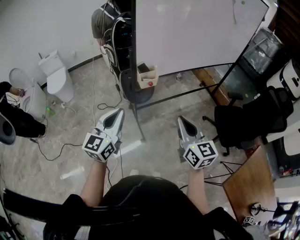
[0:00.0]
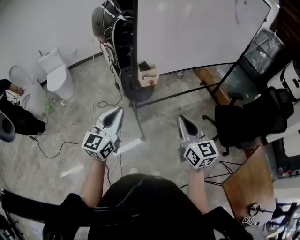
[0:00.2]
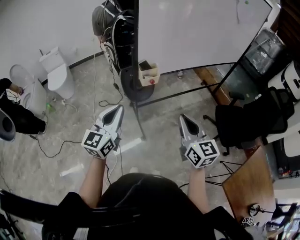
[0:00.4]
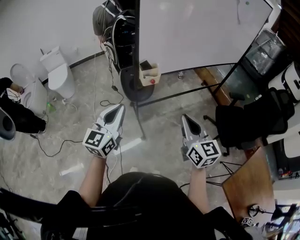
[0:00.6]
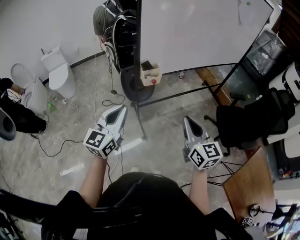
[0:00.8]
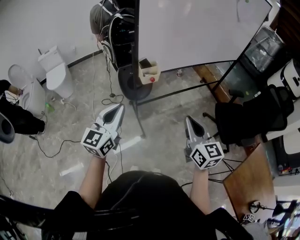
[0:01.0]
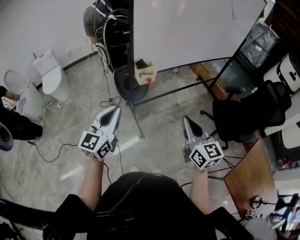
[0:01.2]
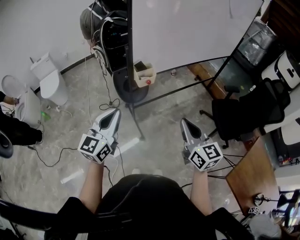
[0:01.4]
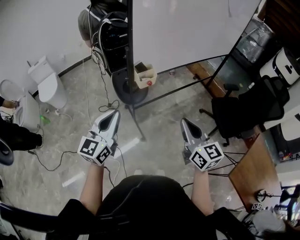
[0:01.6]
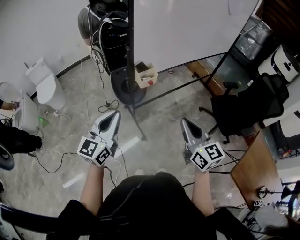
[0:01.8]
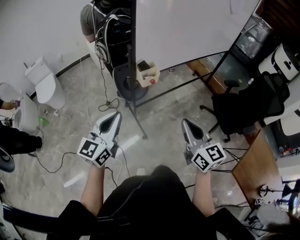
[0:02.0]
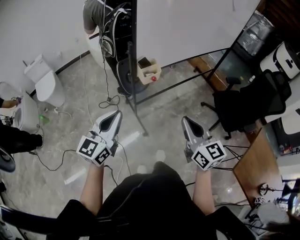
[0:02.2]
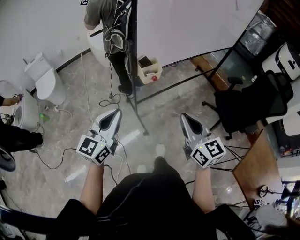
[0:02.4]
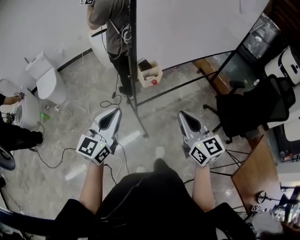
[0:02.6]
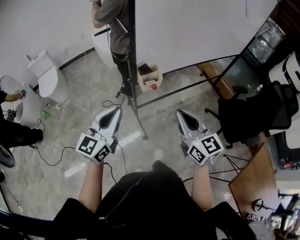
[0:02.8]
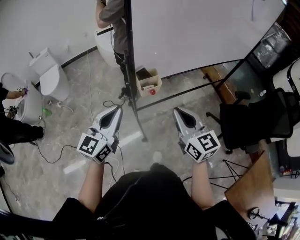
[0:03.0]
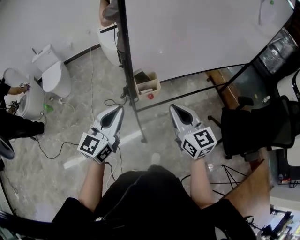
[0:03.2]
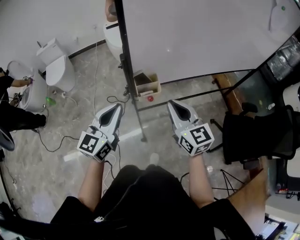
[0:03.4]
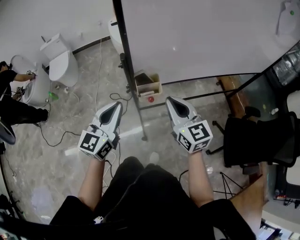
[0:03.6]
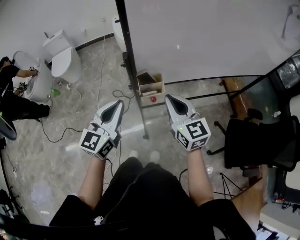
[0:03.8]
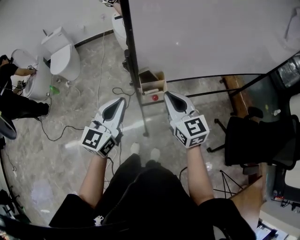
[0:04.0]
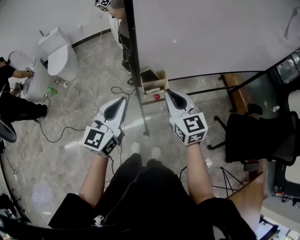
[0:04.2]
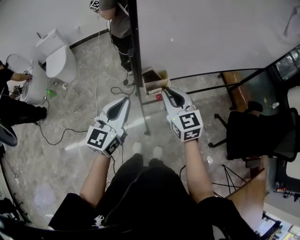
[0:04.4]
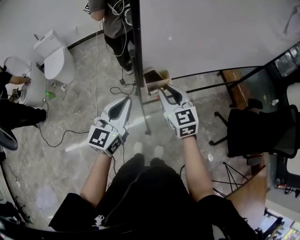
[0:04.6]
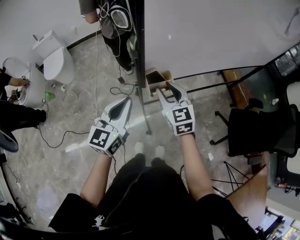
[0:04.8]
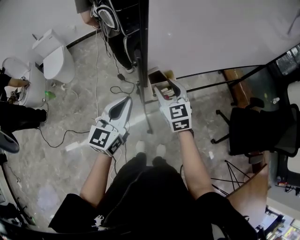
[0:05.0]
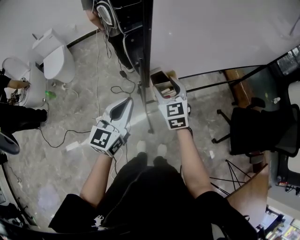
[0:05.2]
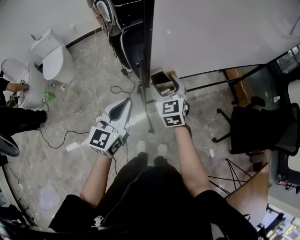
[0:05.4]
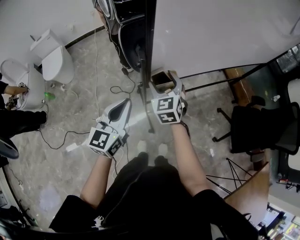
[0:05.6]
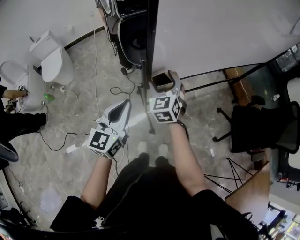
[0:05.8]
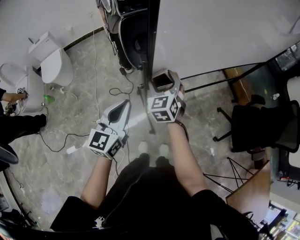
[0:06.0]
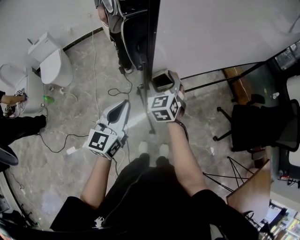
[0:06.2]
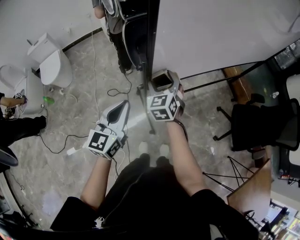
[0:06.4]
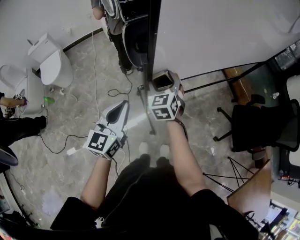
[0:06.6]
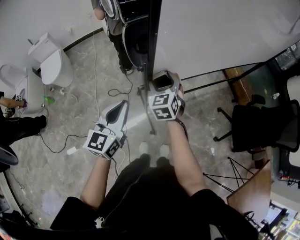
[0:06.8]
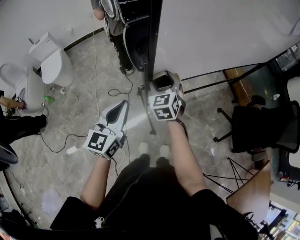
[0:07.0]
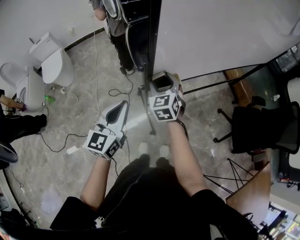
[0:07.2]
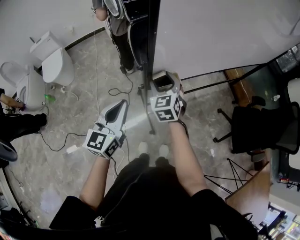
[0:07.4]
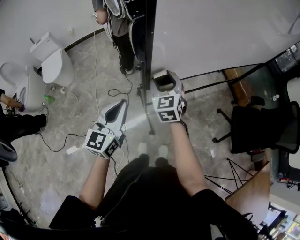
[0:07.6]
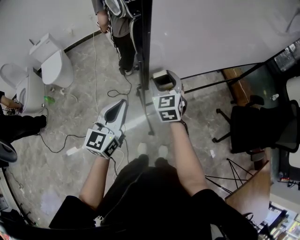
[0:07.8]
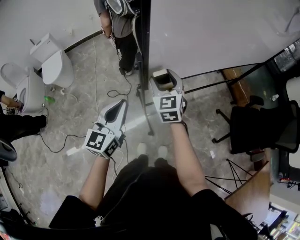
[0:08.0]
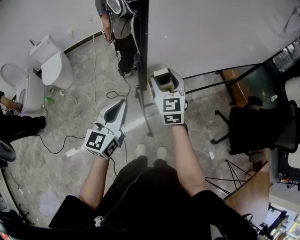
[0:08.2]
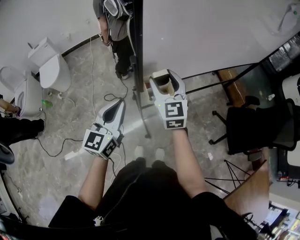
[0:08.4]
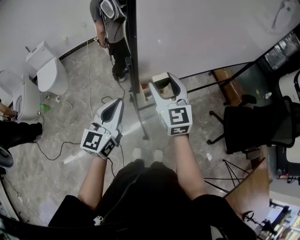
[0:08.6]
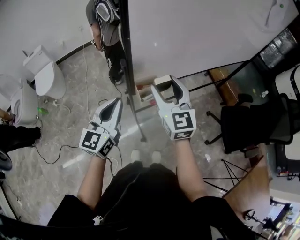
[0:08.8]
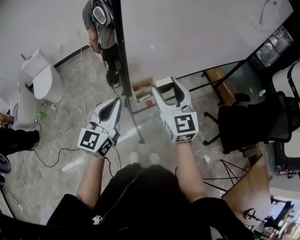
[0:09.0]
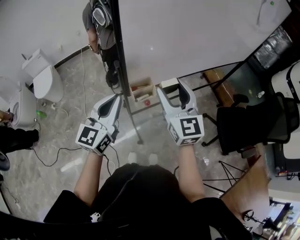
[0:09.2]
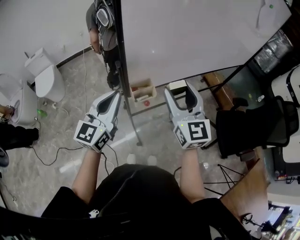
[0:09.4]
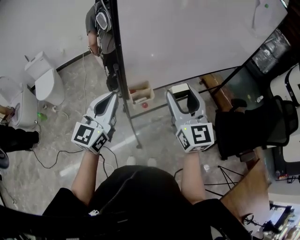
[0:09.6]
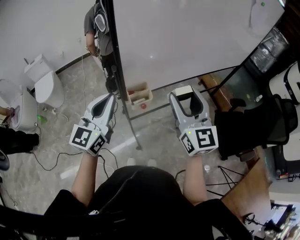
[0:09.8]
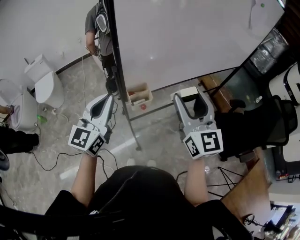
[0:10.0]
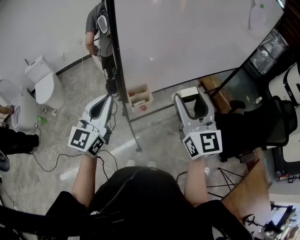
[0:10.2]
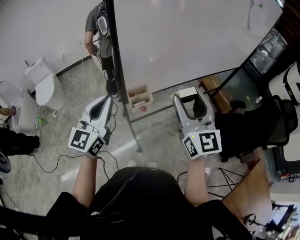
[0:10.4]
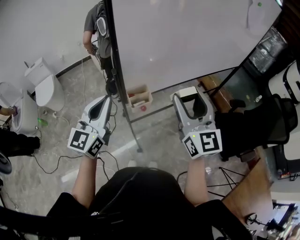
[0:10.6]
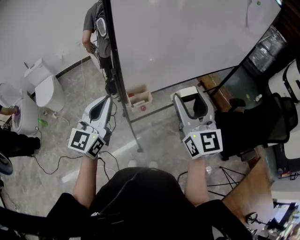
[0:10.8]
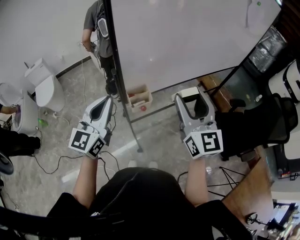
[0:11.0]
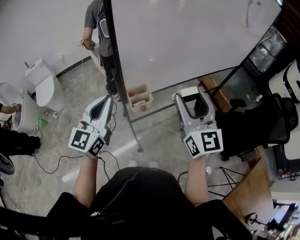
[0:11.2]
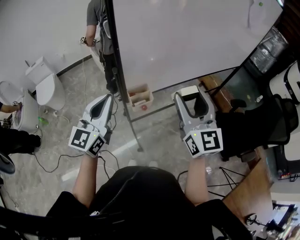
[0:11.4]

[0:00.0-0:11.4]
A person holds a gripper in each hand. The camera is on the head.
0:00.0 to 0:01.4: The grippers move only a little.
0:01.4 to 0:02.8: The right gripper heads forward and to the left, covering some 10 cm; the left gripper heads forward, covering roughly 10 cm.
0:02.8 to 0:04.2: The left gripper goes some 10 cm forward. The right gripper goes about 20 cm forward.
0:04.2 to 0:05.6: The left gripper changes place by approximately 5 cm. The right gripper moves forward, to the left and downward, approximately 15 cm, rotates roughly 30 degrees, and opens up.
0:05.6 to 0:07.2: There are only small adjustments of the grippers.
0:07.2 to 0:08.6: The right gripper shifts approximately 15 cm upward, backward and to the right, and changes its angle by some 20 degrees, while the left gripper ends up roughly 5 cm from where it was.
0:08.6 to 0:10.0: The right gripper is displaced to the right, upward and backward by some 20 cm. The left gripper travels upward by roughly 10 cm.
0:10.0 to 0:11.4: Both grippers stay put.

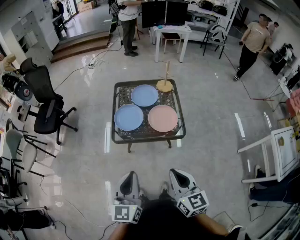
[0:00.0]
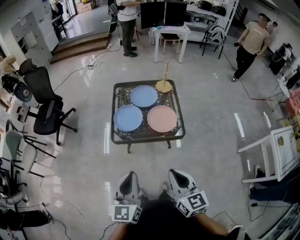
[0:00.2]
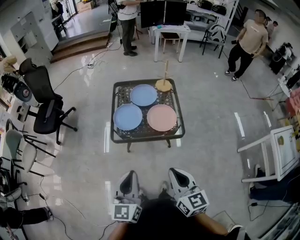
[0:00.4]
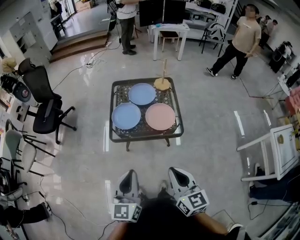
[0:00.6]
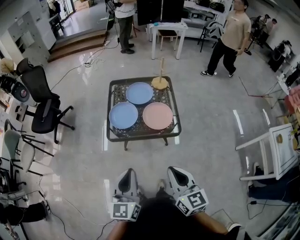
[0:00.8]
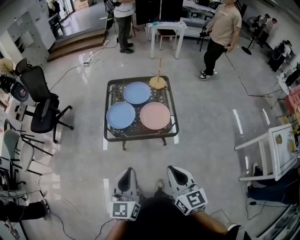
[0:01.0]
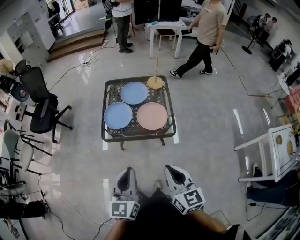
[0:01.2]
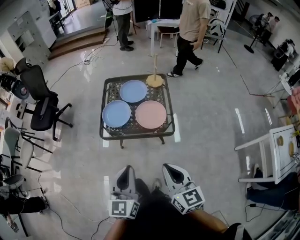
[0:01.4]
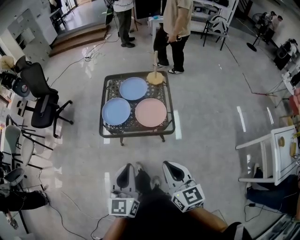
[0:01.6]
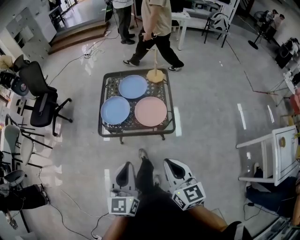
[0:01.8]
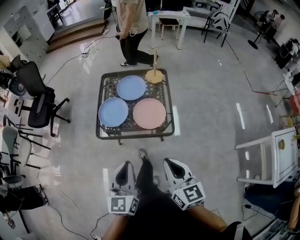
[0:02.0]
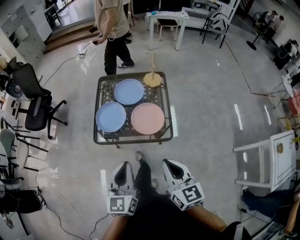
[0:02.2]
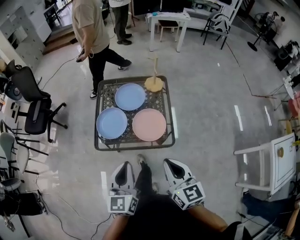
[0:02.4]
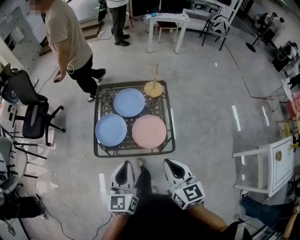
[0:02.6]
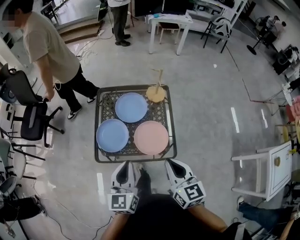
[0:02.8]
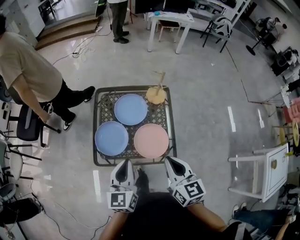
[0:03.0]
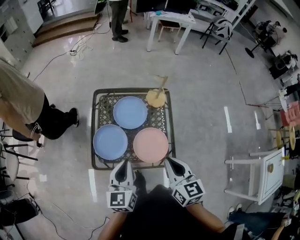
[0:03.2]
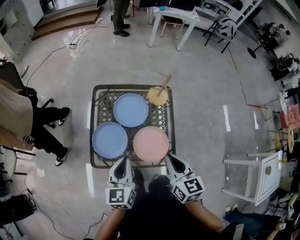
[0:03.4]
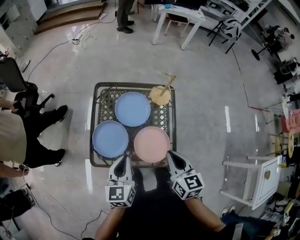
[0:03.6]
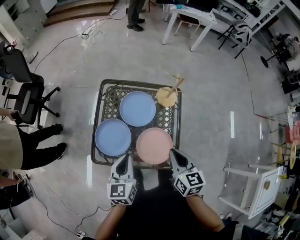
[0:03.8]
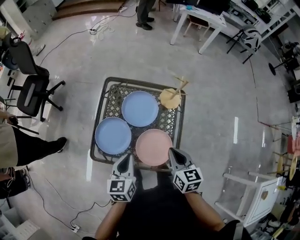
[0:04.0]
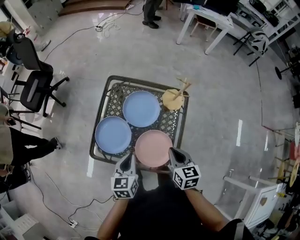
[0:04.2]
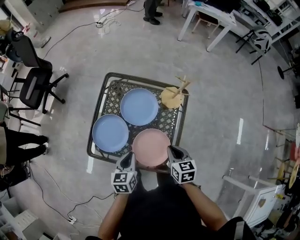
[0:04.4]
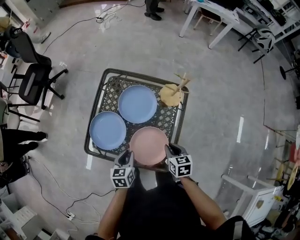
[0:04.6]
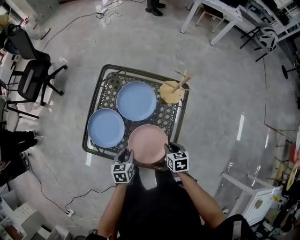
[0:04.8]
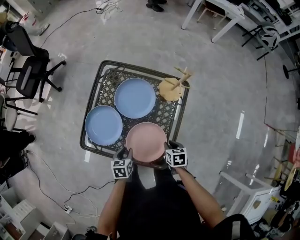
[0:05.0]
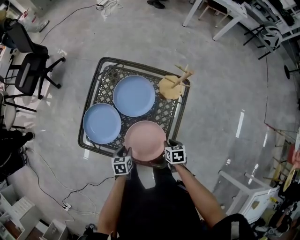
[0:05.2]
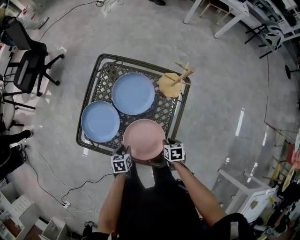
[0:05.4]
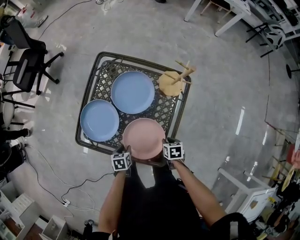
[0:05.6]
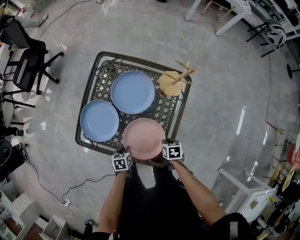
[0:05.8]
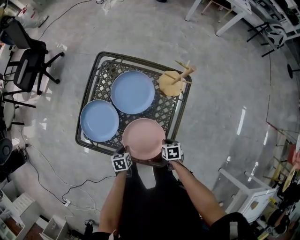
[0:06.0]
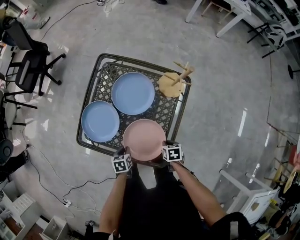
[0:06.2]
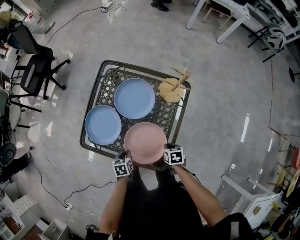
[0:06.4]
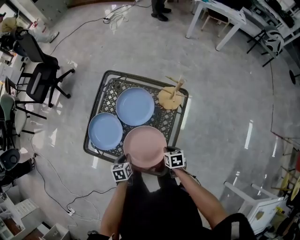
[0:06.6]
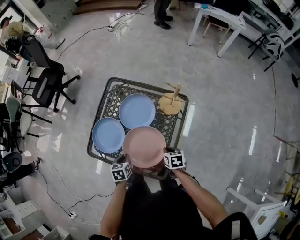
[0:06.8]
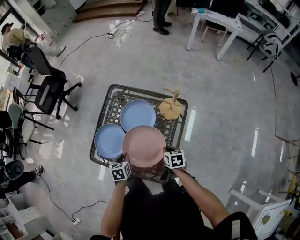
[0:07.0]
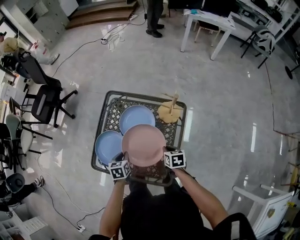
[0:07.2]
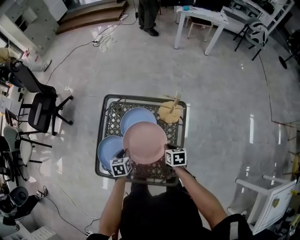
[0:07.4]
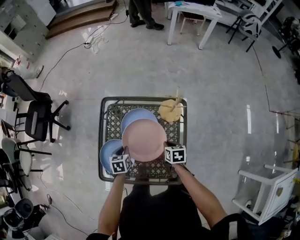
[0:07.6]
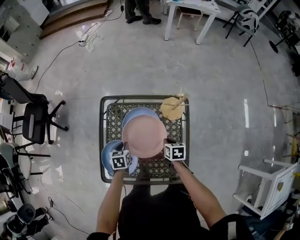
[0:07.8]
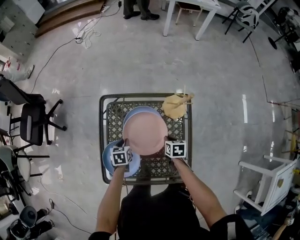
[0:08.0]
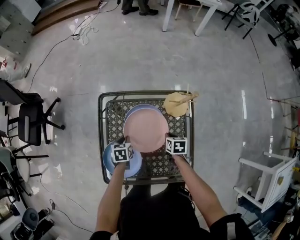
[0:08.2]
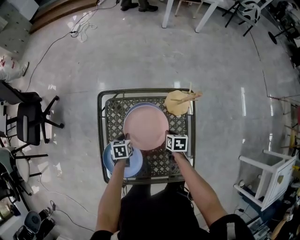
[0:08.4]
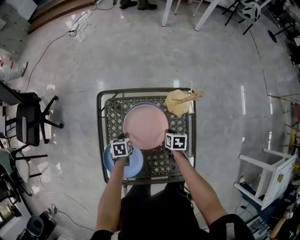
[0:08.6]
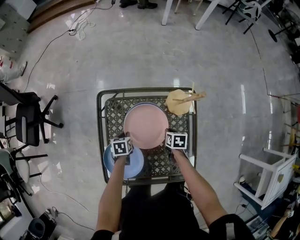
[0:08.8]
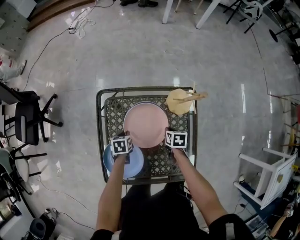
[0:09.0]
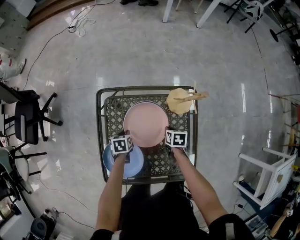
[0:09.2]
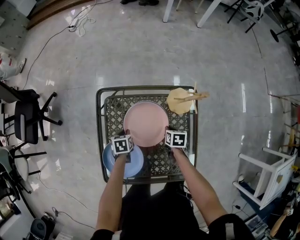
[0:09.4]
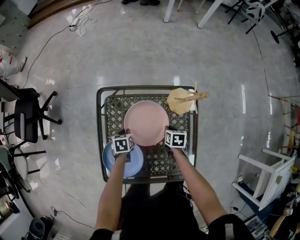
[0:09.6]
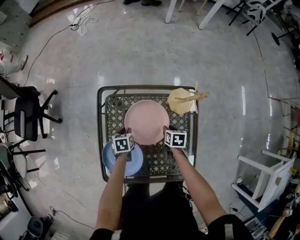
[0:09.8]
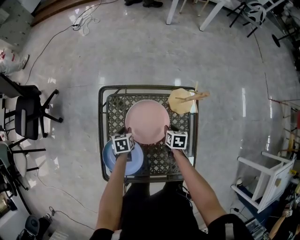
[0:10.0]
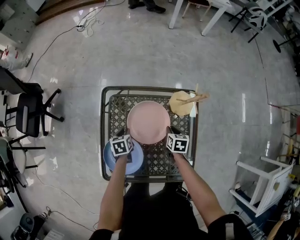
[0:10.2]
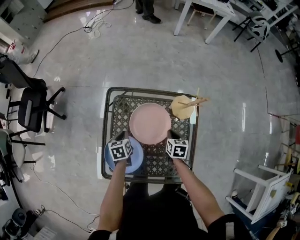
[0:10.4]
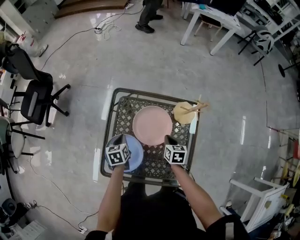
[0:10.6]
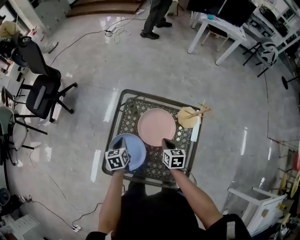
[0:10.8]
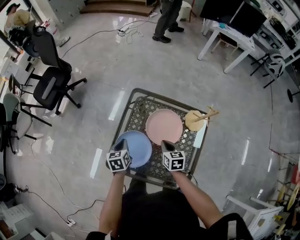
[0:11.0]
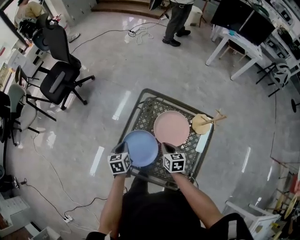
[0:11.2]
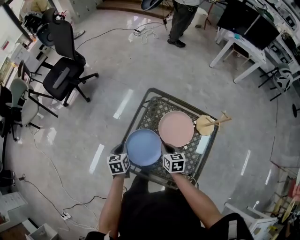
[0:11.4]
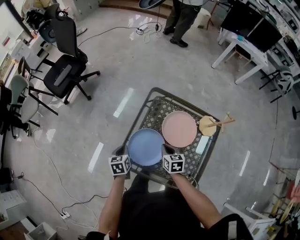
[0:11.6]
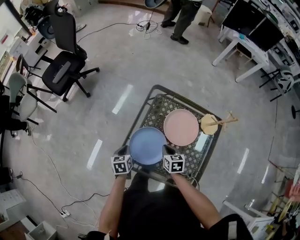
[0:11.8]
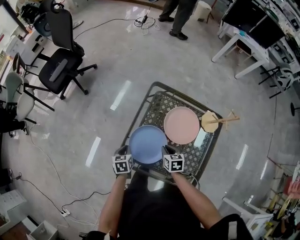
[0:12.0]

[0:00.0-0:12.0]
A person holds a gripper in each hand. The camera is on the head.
0:00.0 to 0:01.6: Both grippers move to the right, about 10 cm.
0:01.6 to 0:03.0: Both grippers move forward, about 30 cm.
0:03.0 to 0:04.4: The two grippers go approximately 25 cm downward and forward. The left gripper swivels approximately 30 degrees. The right gripper changes its angle by some 30 degrees.
0:04.4 to 0:06.0: The two grippers go some 25 cm downward. The left gripper changes its angle by approximately 30 degrees; the right gripper turns by approximately 30 degrees.
0:06.0 to 0:07.6: Both grippers travel together forward and upward, roughly 25 cm. The left gripper changes its angle by roughly 20 degrees; the right gripper rotates about 20 degrees.
0:07.6 to 0:09.0: The two grippers go roughly 15 cm downward and forward.
0:09.0 to 0:10.4: The two grippers go roughly 5 cm upward.
0:10.4 to 0:12.0: The left gripper reaches some 10 cm upward, then returns; the right gripper goes upward and returns, about 10 cm each way, and rotates some 30 degrees.
